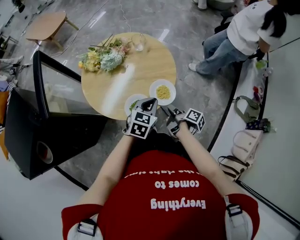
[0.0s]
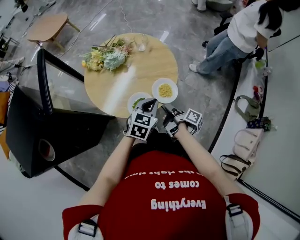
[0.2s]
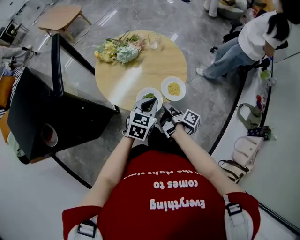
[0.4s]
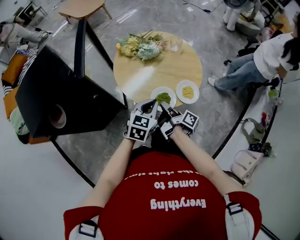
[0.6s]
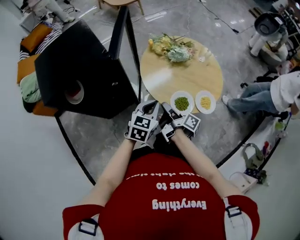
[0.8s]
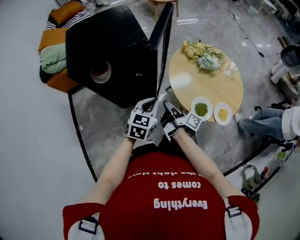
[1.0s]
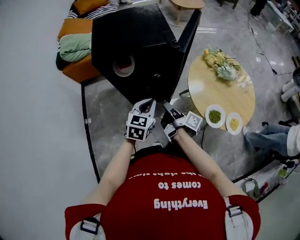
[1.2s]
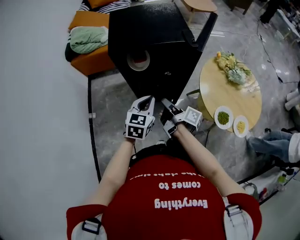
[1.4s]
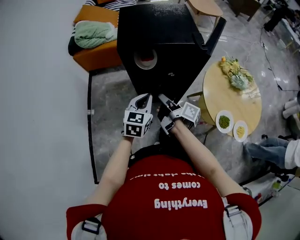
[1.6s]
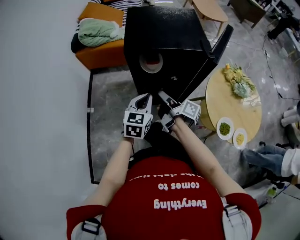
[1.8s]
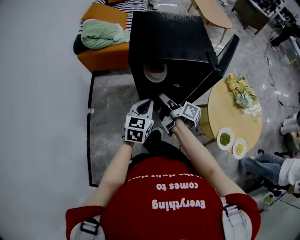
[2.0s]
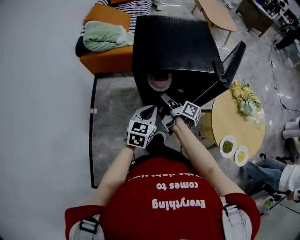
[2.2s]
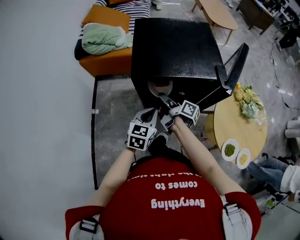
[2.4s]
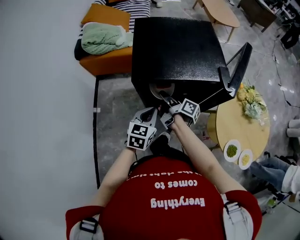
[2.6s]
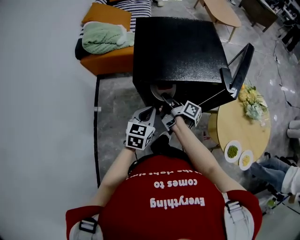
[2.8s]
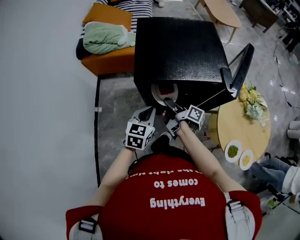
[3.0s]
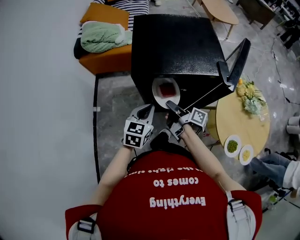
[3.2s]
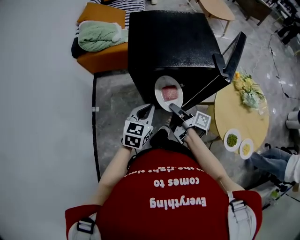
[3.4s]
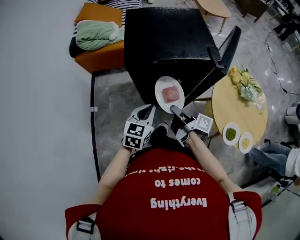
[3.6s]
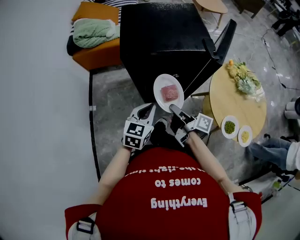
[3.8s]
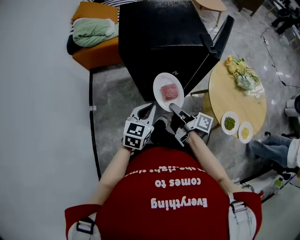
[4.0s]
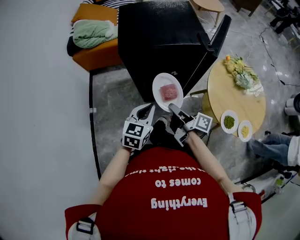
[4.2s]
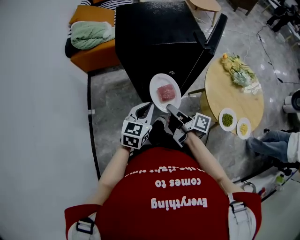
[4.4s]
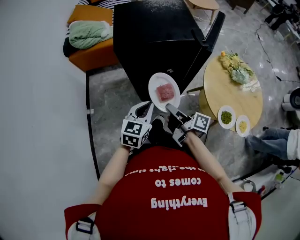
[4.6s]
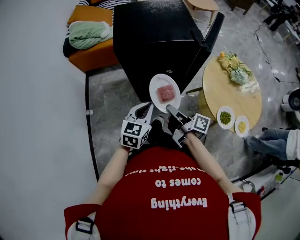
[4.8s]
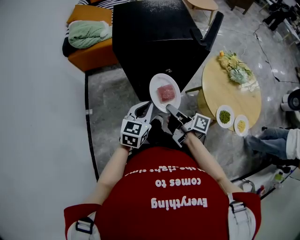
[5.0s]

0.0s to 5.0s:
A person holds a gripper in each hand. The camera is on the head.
0.0s to 1.6s: The left gripper changes place by some 60 cm, and swivels roughly 70 degrees.
3.4s to 5.0s: The left gripper shifts by about 10 cm.

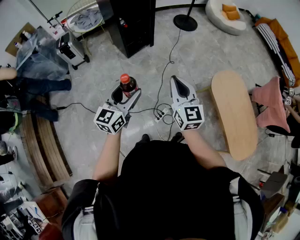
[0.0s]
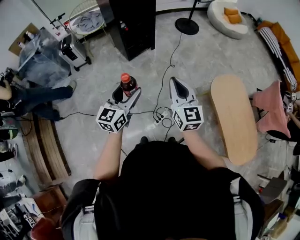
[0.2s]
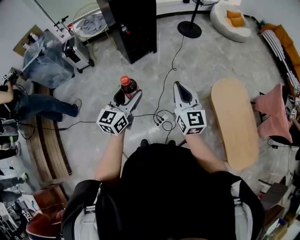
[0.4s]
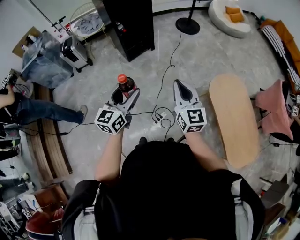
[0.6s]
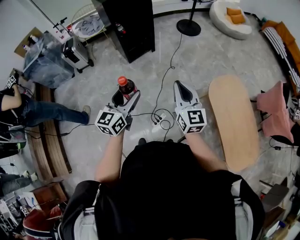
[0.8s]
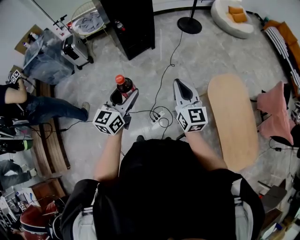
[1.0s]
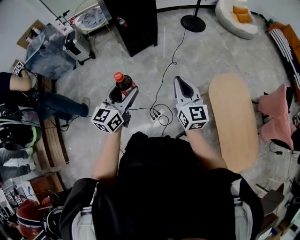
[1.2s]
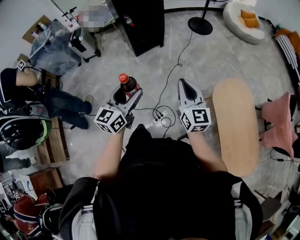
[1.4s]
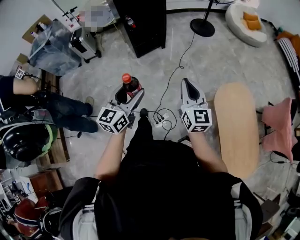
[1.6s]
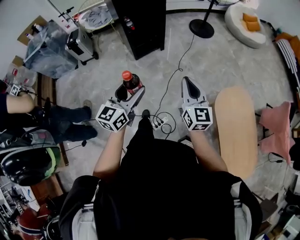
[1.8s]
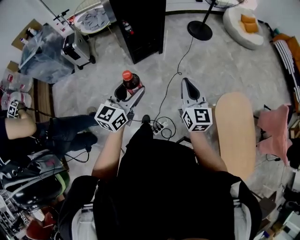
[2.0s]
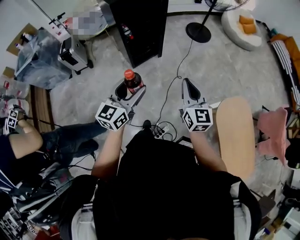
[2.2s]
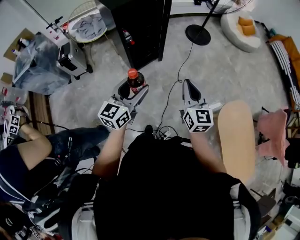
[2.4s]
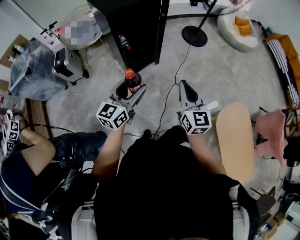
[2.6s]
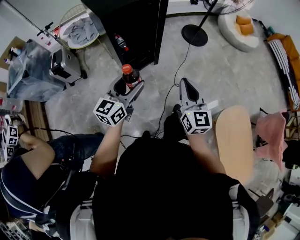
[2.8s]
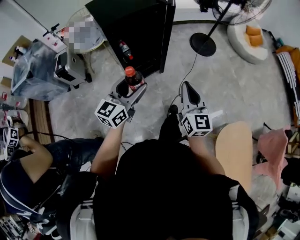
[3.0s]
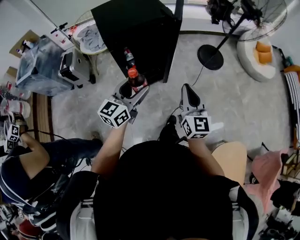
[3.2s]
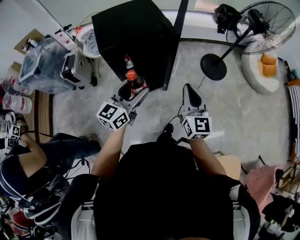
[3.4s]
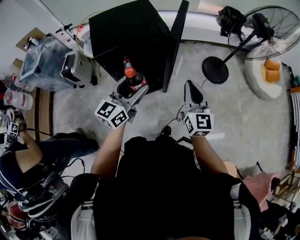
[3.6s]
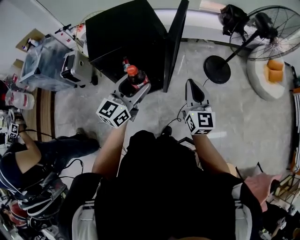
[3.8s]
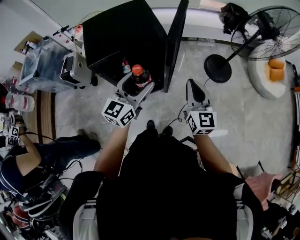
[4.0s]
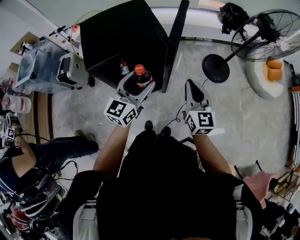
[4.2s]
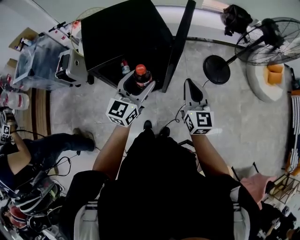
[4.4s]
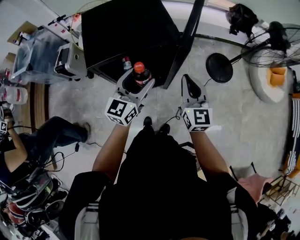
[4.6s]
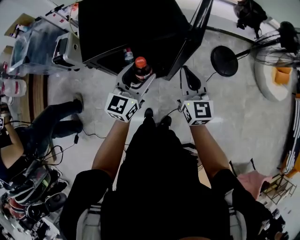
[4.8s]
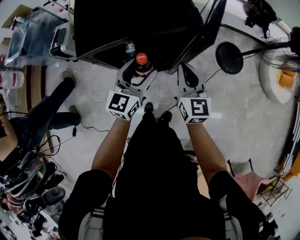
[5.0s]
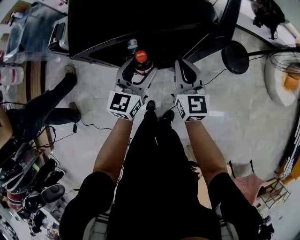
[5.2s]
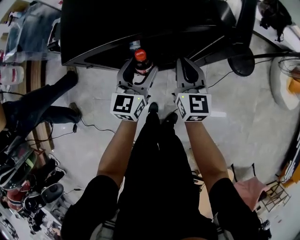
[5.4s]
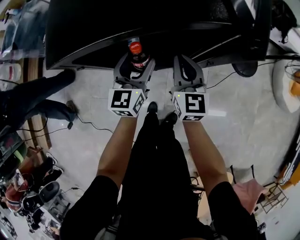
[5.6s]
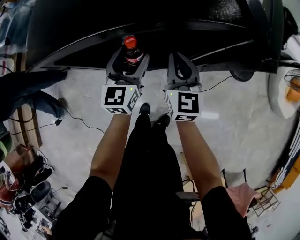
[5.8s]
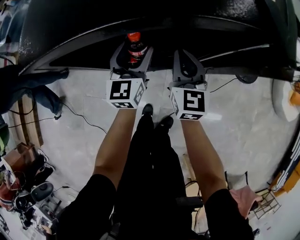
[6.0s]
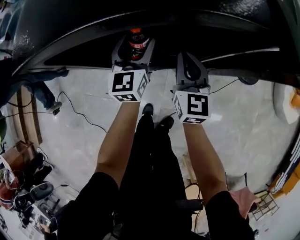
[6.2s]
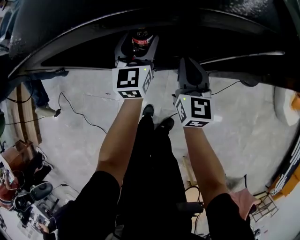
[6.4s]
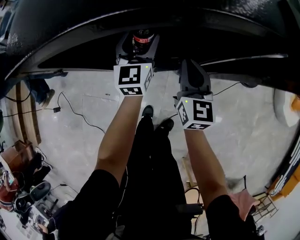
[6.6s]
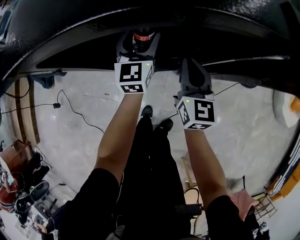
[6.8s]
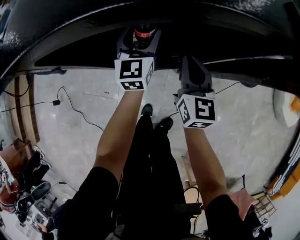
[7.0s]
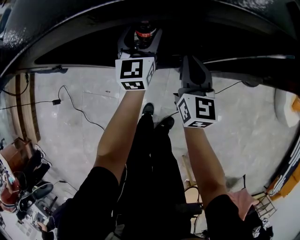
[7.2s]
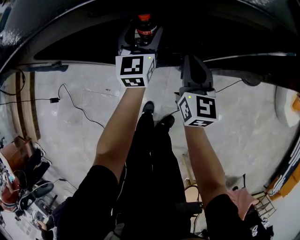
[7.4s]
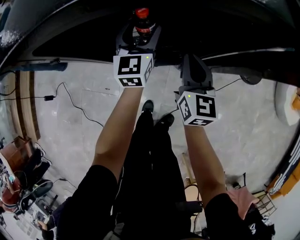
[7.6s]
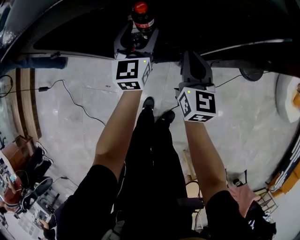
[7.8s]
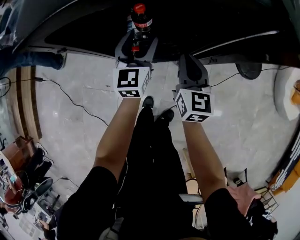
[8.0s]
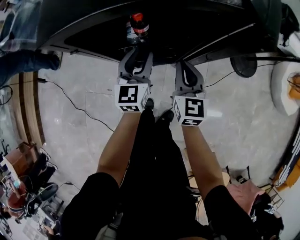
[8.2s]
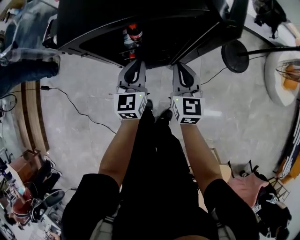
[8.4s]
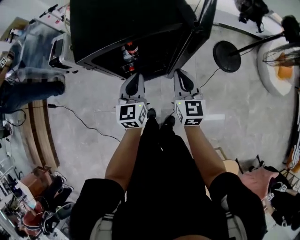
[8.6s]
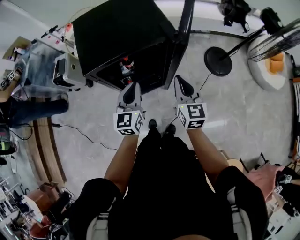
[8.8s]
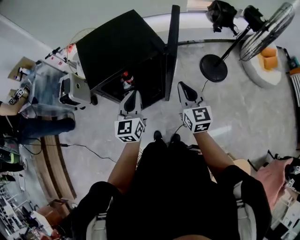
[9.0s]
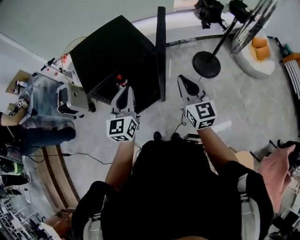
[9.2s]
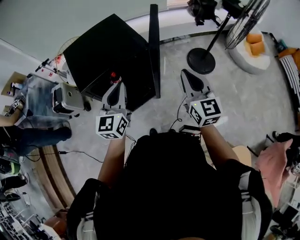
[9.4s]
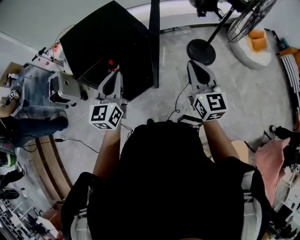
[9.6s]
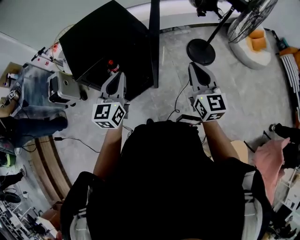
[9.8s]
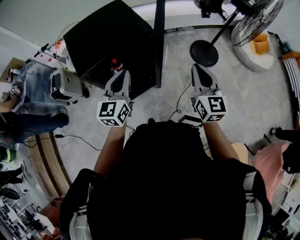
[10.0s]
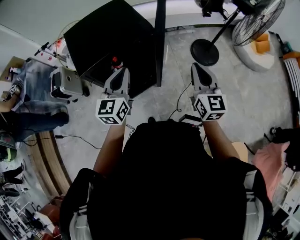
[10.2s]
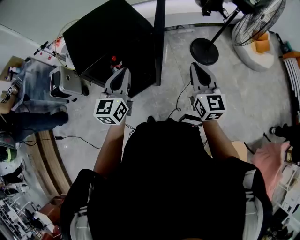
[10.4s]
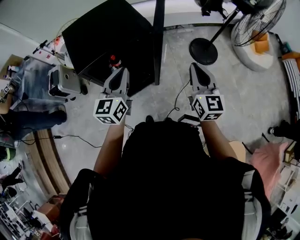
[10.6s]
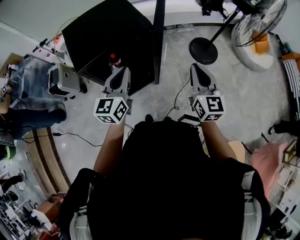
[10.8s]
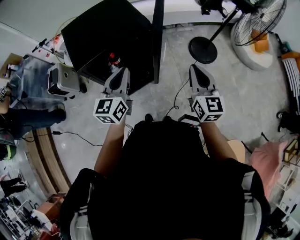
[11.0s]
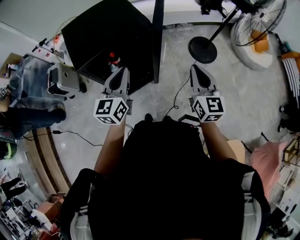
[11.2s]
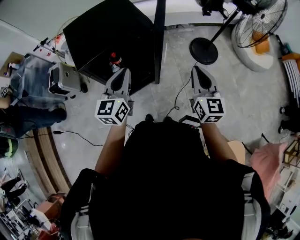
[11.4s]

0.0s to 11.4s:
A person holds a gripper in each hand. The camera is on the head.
0.0s to 1.4s: The two grippers go some 15 cm to the right.
1.4s to 2.8s: Both grippers move forward and to the left, approximately 40 cm.
2.8s to 4.2s: Both grippers move forward, some 40 cm.
4.2s to 5.6s: Both grippers travel together downward, to the left and forward, approximately 30 cm. The left gripper swivels some 30 degrees.
5.6s to 7.2s: The left gripper moves forward and downward, about 15 cm; the right gripper is displaced downward by about 10 cm.
7.2s to 8.6s: The right gripper goes roughly 20 cm upward and backward; the left gripper travels backward and upward by some 25 cm, and closes its fingers.
8.6s to 10.0s: The left gripper shifts some 20 cm upward, and changes its angle by some 20 degrees; the right gripper is displaced upward, to the right and backward by some 30 cm.
10.0s to 11.4s: The grippers make only small movements.

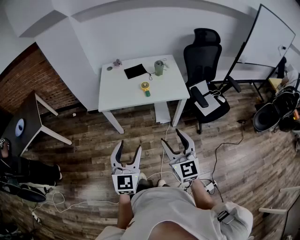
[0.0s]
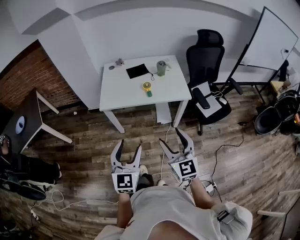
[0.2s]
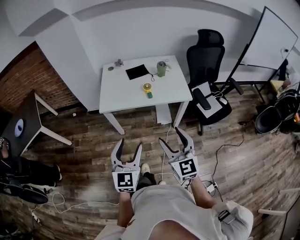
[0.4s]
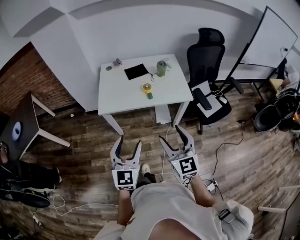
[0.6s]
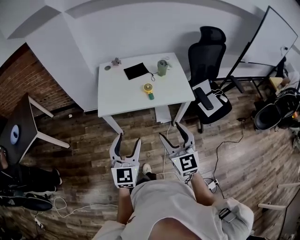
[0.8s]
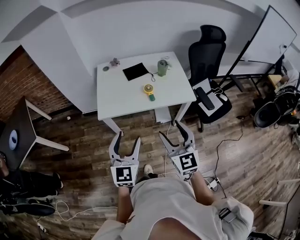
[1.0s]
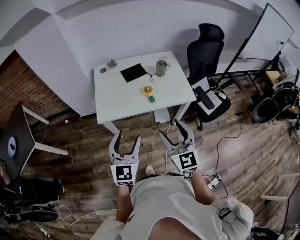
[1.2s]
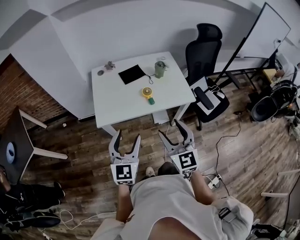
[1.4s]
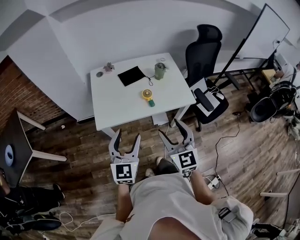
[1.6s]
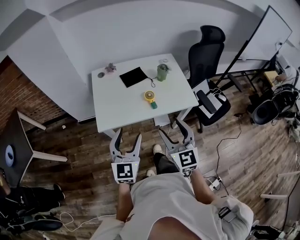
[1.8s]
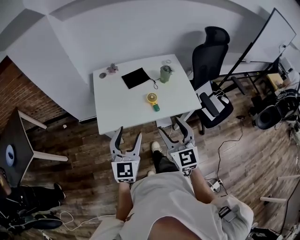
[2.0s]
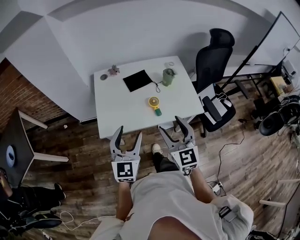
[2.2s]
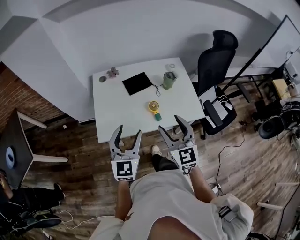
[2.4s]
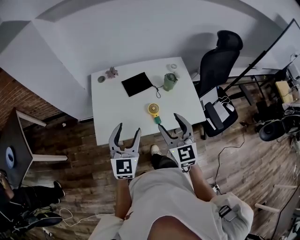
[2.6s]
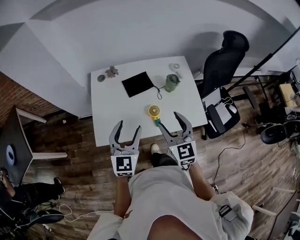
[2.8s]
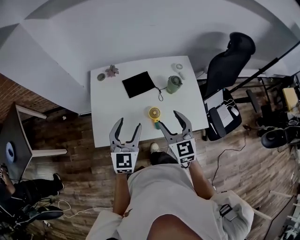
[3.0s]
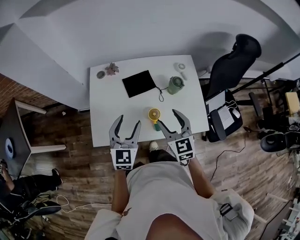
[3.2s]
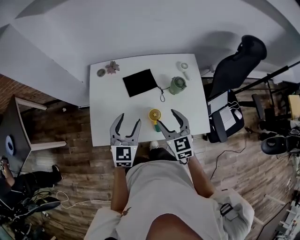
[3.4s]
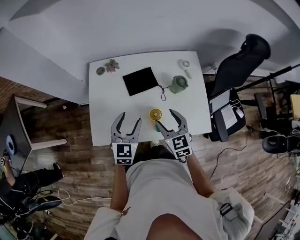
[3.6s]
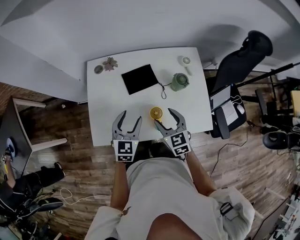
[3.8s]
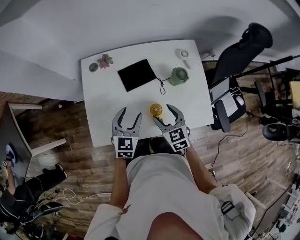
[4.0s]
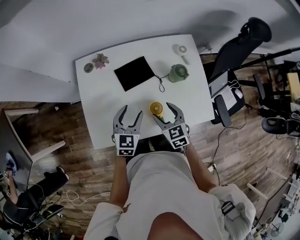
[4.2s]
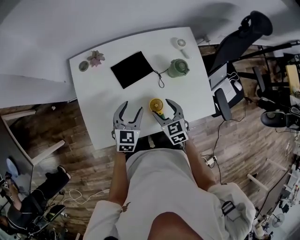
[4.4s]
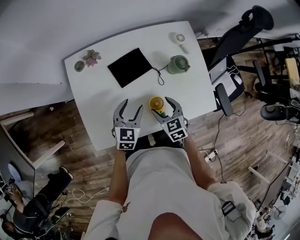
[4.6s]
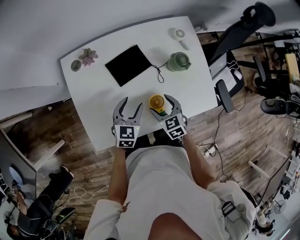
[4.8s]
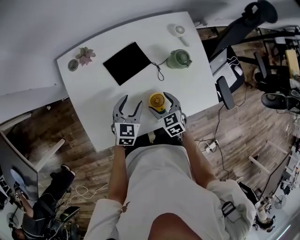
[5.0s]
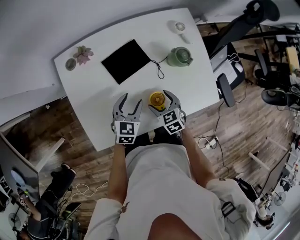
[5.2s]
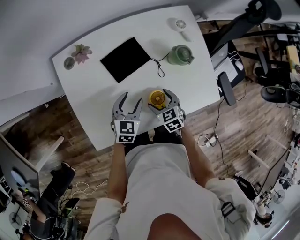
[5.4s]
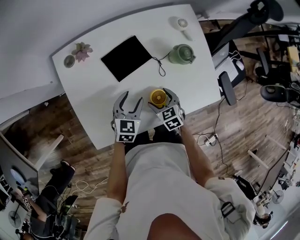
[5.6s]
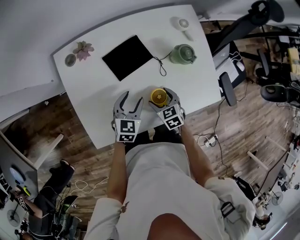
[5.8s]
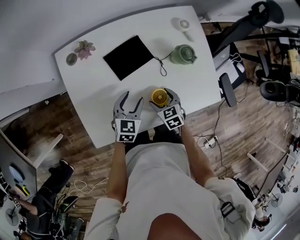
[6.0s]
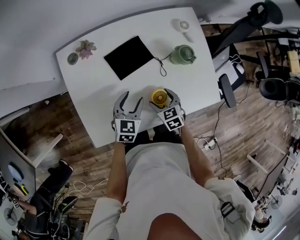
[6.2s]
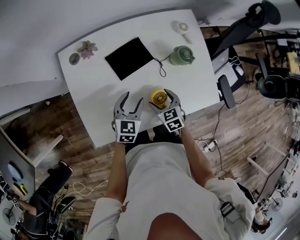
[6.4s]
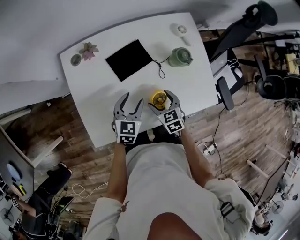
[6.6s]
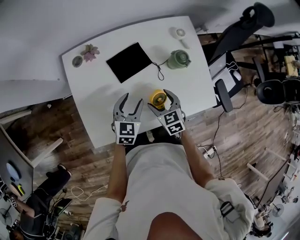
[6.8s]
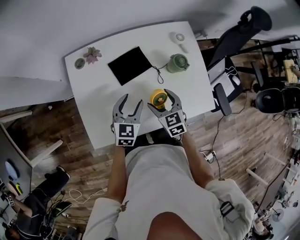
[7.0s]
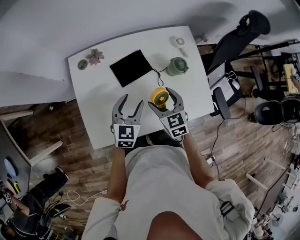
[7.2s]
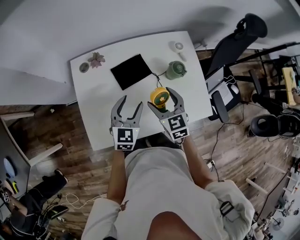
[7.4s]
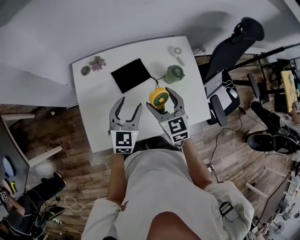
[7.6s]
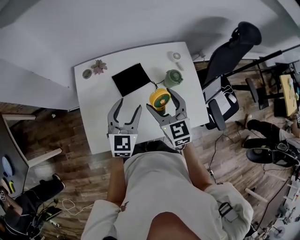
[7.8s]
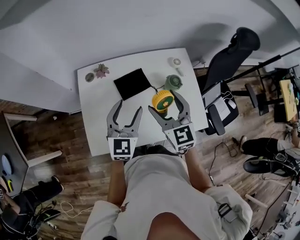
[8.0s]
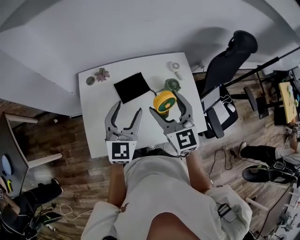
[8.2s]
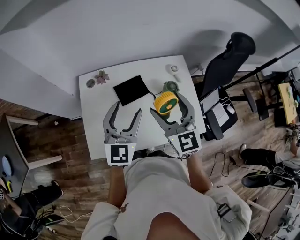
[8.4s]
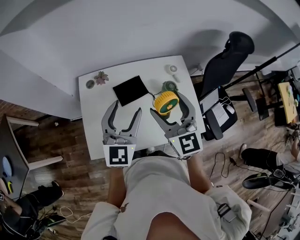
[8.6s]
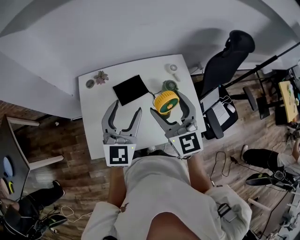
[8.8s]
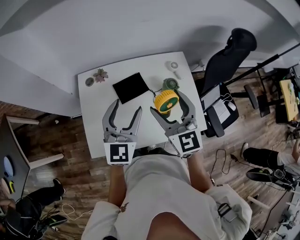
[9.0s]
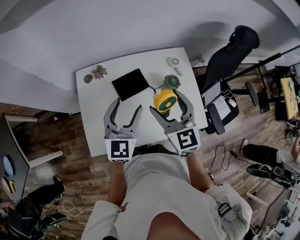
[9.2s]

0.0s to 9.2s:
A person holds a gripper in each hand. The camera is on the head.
0.0s to 1.6s: The grippers both shift forward by about 25 cm.
1.6s to 3.0s: The grippers both shift forward by some 25 cm.
3.0s to 4.6s: The left gripper is displaced downward and forward by about 25 cm, and rotates about 30 degrees. Meanwhile the right gripper goes about 25 cm downward, and turns by roughly 30 degrees.
4.6s to 6.2s: The right gripper goes some 5 cm downward.
6.2s to 7.6s: Both grippers move upward, about 20 cm. The right gripper changes its angle by roughly 30 degrees, while the left gripper swivels roughly 20 degrees.
7.6s to 9.2s: Both grippers move upward, roughly 10 cm.
